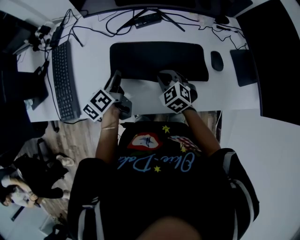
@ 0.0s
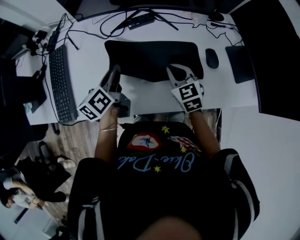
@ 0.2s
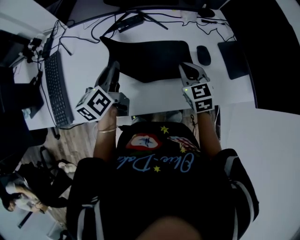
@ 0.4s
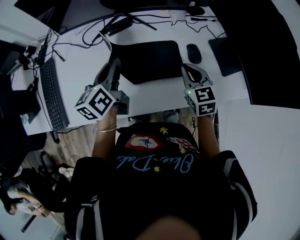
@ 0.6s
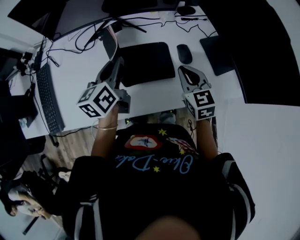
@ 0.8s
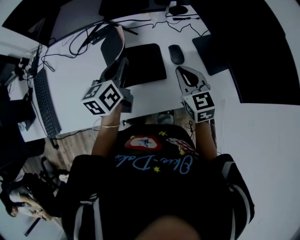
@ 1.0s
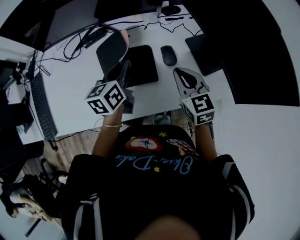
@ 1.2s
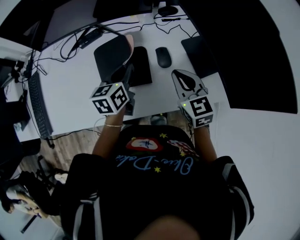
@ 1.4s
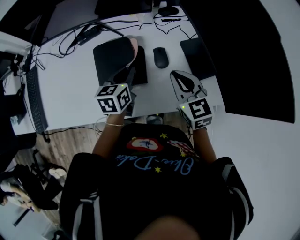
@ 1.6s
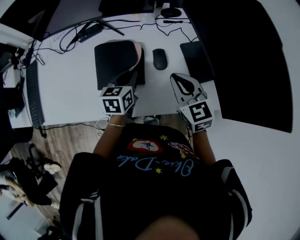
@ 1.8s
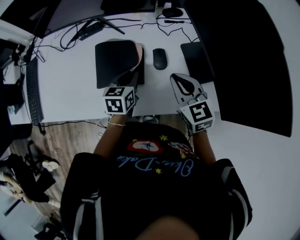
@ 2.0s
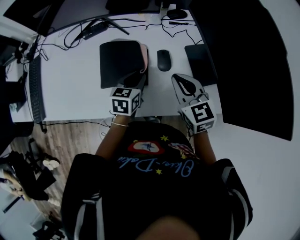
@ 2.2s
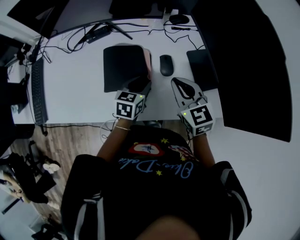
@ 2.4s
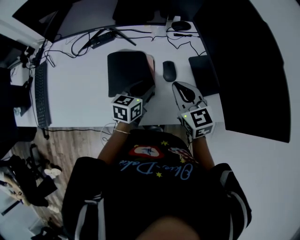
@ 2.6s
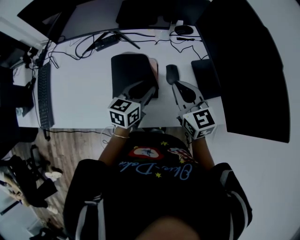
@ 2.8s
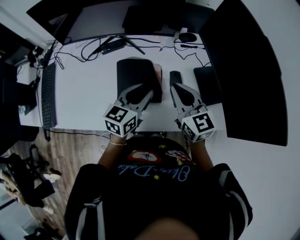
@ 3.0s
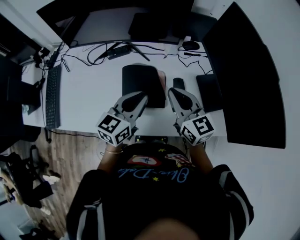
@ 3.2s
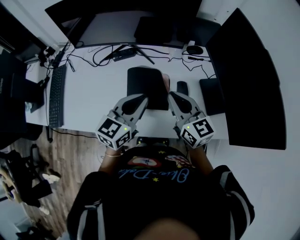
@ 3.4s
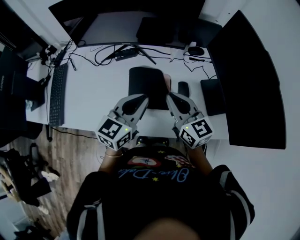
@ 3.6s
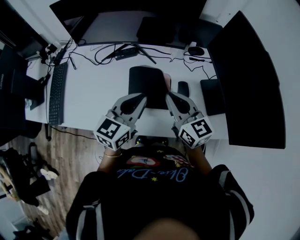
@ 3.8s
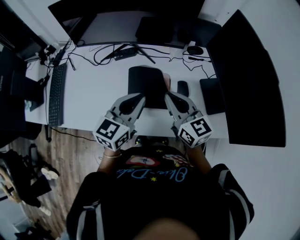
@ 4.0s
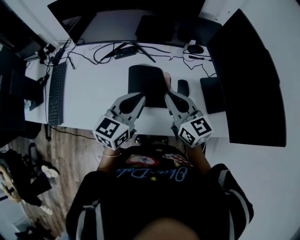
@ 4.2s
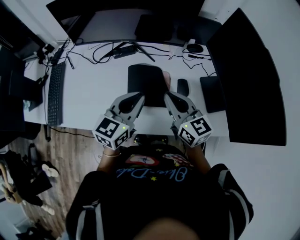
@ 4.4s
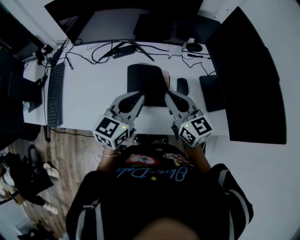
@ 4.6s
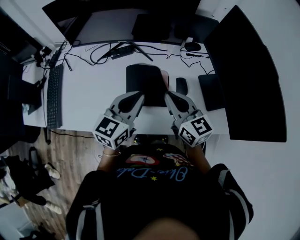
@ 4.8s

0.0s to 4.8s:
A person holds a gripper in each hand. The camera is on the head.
0.0s to 1.6s: The left gripper goes roughly 35 cm to the right, and changes its angle by about 40 degrees, while the right gripper goes approximately 35 cm to the right and upward, and swivels about 30 degrees.
1.6s to 3.2s: The right gripper travels to the left and upward by approximately 10 cm, and changes its angle by some 20 degrees; the left gripper moves upward and backward, approximately 10 cm, changes its angle by about 20 degrees, and opens and closes again.
3.2s to 4.8s: The grippers stay close to where they were, moving slightly.

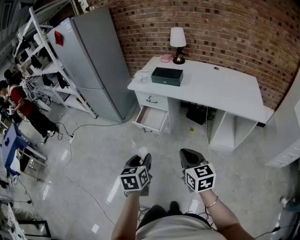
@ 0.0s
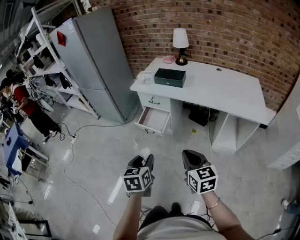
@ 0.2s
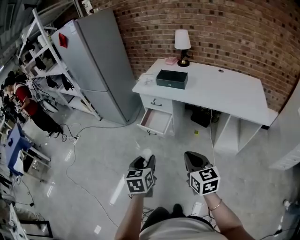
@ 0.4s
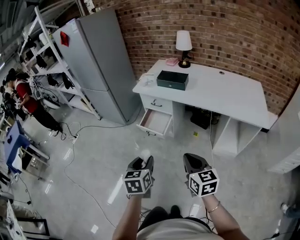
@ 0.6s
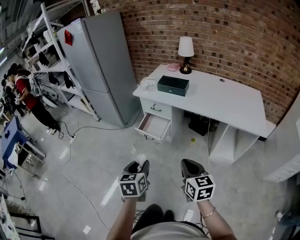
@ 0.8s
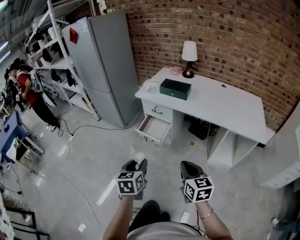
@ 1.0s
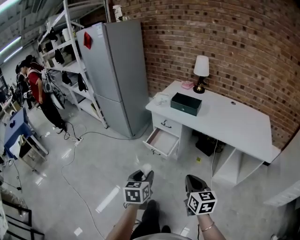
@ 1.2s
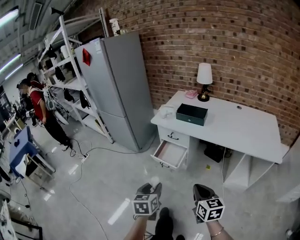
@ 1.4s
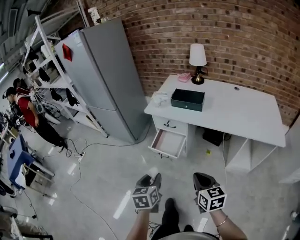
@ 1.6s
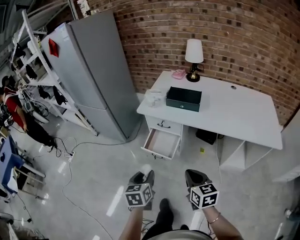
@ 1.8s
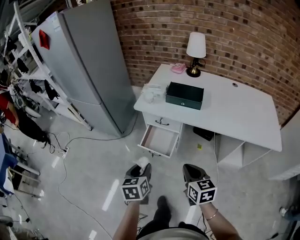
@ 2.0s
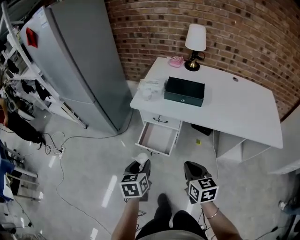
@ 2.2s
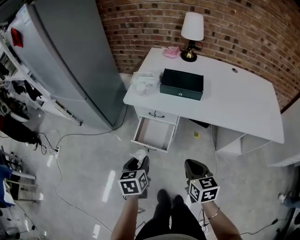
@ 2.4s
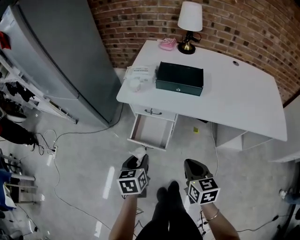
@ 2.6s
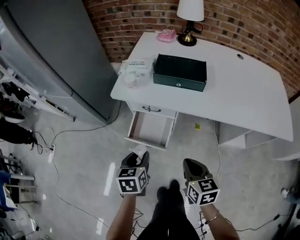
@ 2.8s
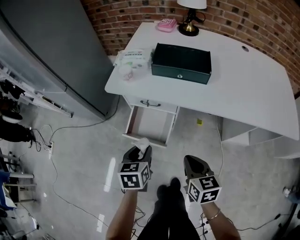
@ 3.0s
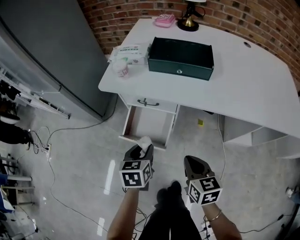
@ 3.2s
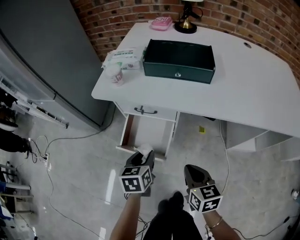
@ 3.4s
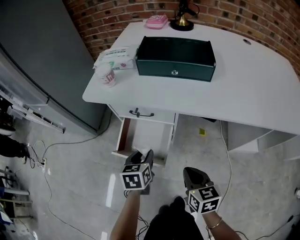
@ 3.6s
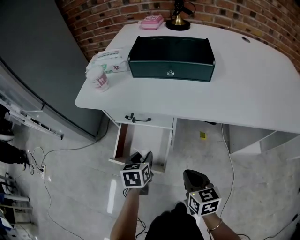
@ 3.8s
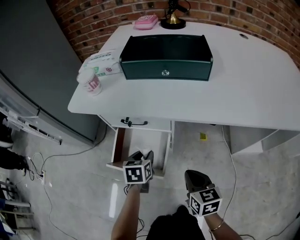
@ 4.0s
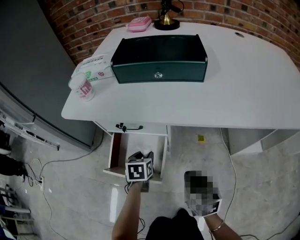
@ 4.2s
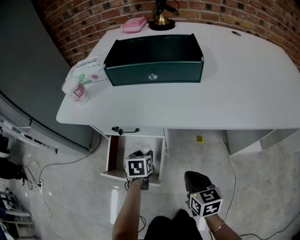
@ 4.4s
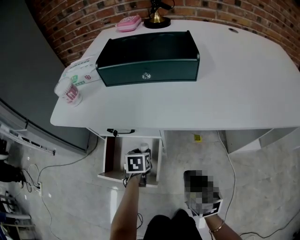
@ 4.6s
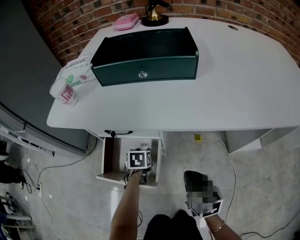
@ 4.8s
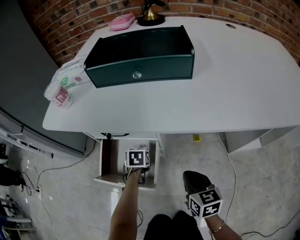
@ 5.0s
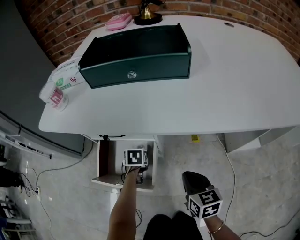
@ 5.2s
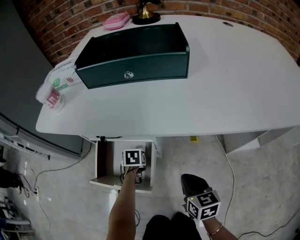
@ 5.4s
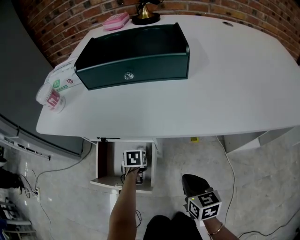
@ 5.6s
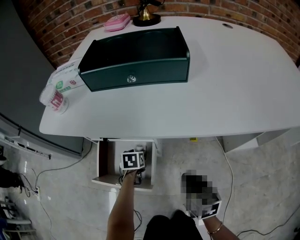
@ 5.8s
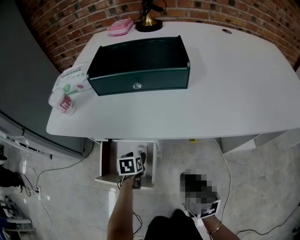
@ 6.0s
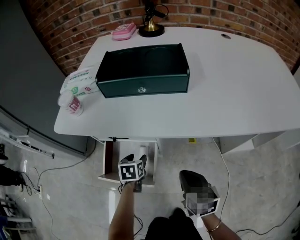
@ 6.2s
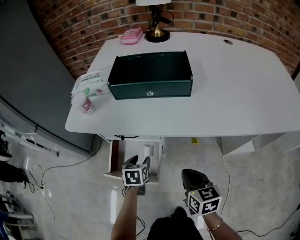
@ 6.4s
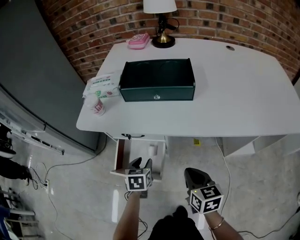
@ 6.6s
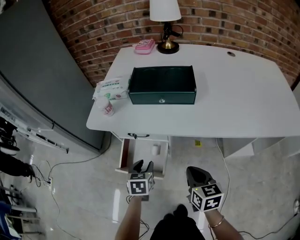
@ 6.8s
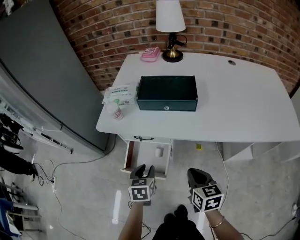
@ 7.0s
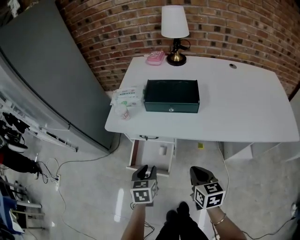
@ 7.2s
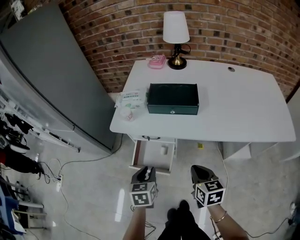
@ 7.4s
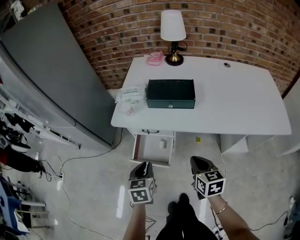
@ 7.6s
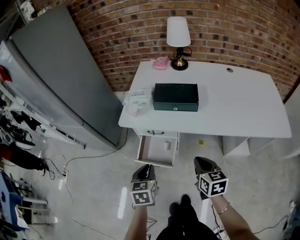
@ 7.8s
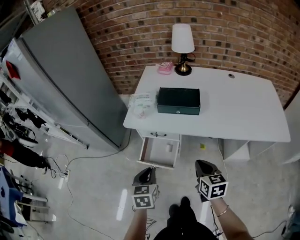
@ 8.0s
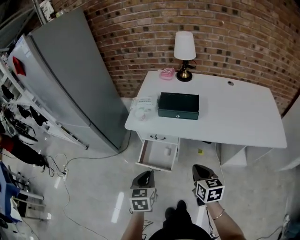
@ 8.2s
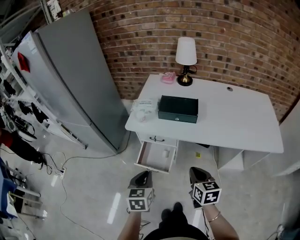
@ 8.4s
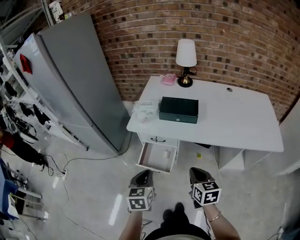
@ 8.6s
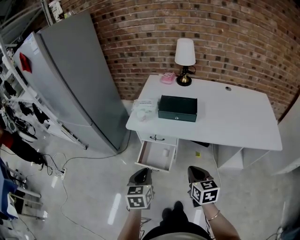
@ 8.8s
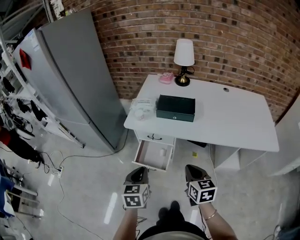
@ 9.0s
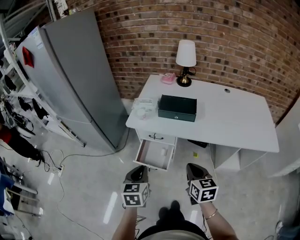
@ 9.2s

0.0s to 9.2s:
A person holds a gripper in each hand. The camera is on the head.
0.0s to 1.6s: The right gripper moves forward, about 15 cm. The left gripper goes some 15 cm forward and to the left.
1.6s to 3.0s: Both grippers travel together forward and downward, roughly 40 cm.
3.0s to 4.6s: The two grippers go roughly 35 cm downward and forward.
4.6s to 6.2s: The right gripper shifts about 5 cm upward; the left gripper reaches roughly 10 cm downward, then returns.
6.2s to 7.6s: The left gripper heads upward and backward, covering approximately 40 cm, and closes. The right gripper moves upward, approximately 30 cm.
7.6s to 9.2s: The two grippers go about 15 cm upward and backward.

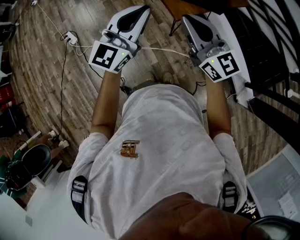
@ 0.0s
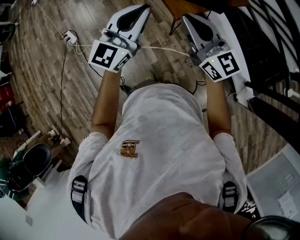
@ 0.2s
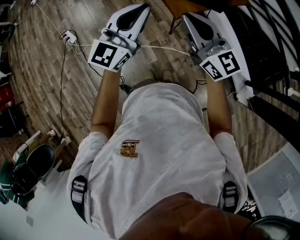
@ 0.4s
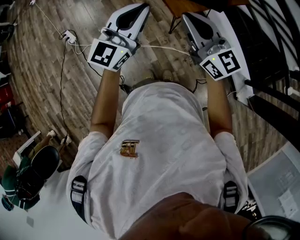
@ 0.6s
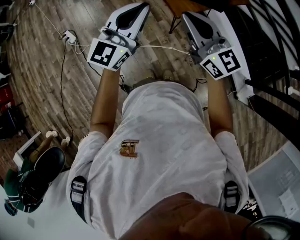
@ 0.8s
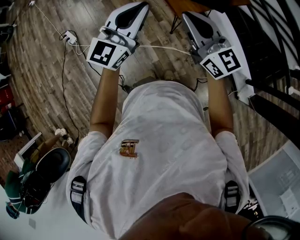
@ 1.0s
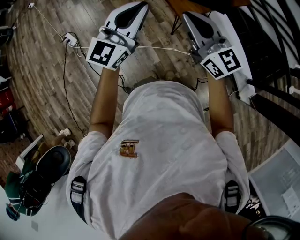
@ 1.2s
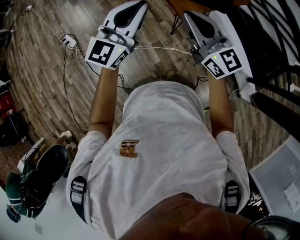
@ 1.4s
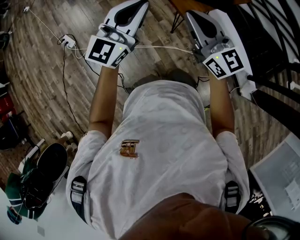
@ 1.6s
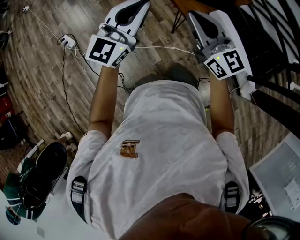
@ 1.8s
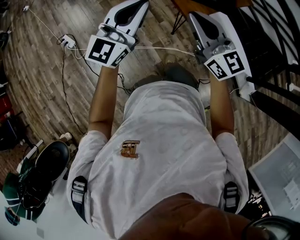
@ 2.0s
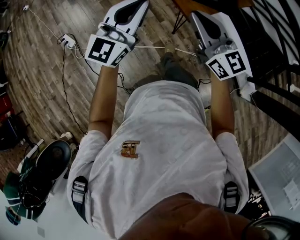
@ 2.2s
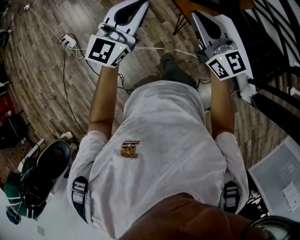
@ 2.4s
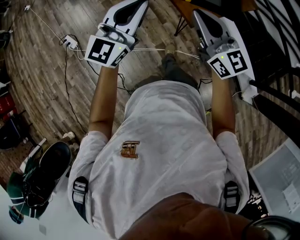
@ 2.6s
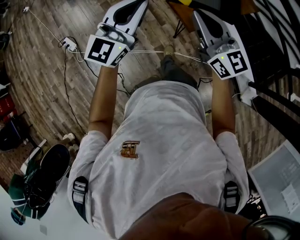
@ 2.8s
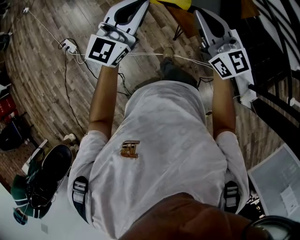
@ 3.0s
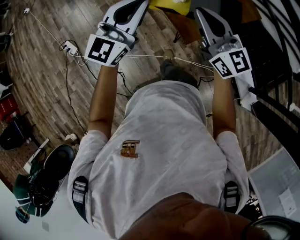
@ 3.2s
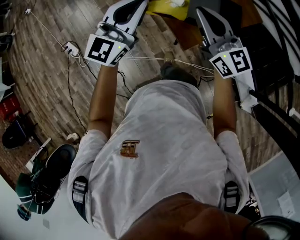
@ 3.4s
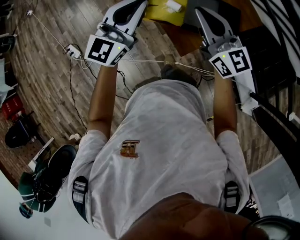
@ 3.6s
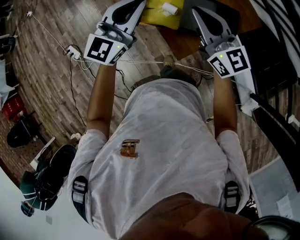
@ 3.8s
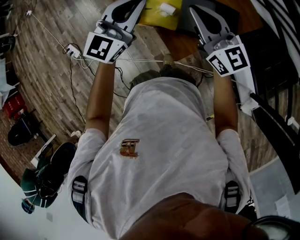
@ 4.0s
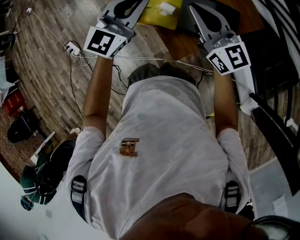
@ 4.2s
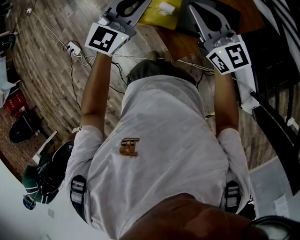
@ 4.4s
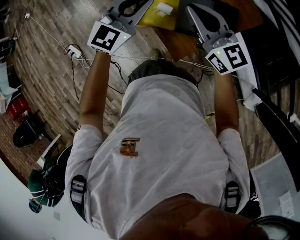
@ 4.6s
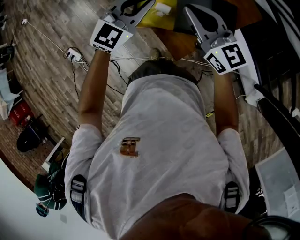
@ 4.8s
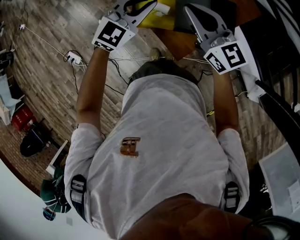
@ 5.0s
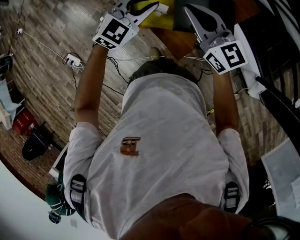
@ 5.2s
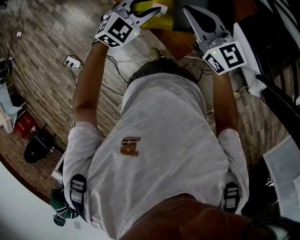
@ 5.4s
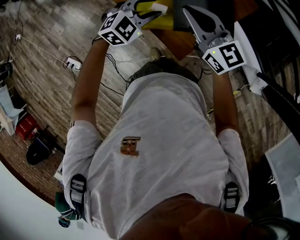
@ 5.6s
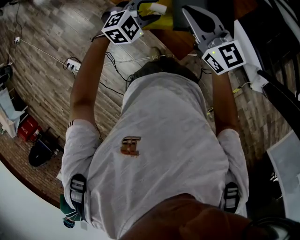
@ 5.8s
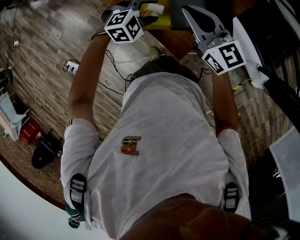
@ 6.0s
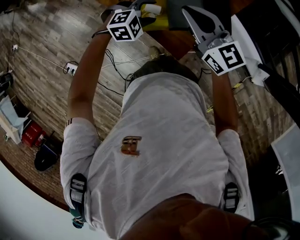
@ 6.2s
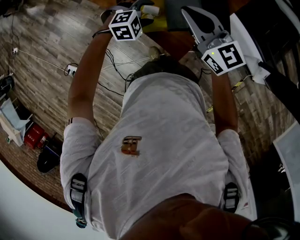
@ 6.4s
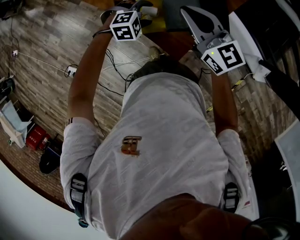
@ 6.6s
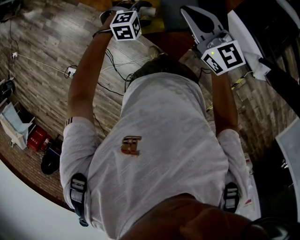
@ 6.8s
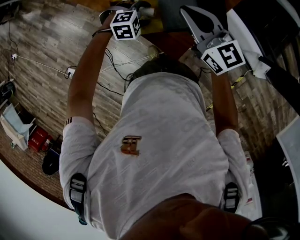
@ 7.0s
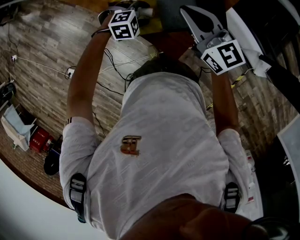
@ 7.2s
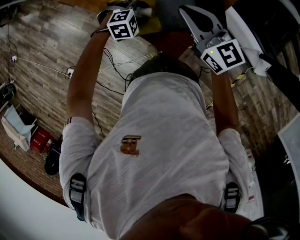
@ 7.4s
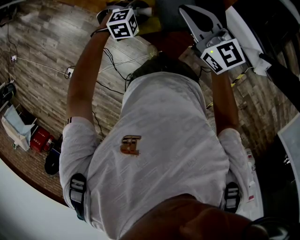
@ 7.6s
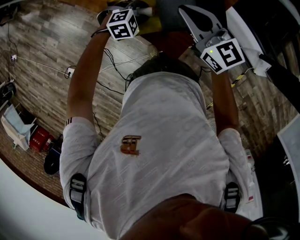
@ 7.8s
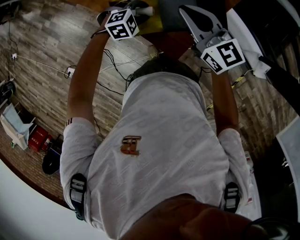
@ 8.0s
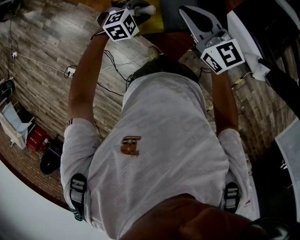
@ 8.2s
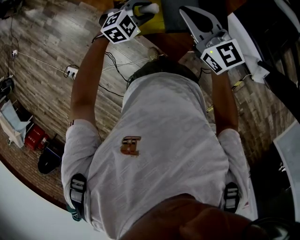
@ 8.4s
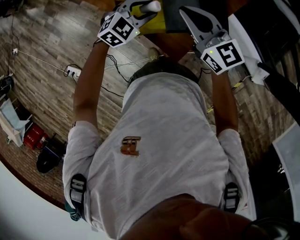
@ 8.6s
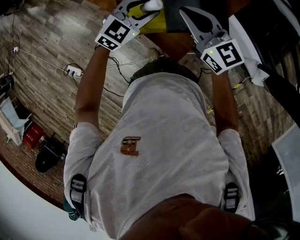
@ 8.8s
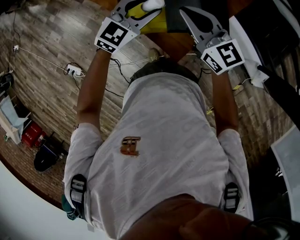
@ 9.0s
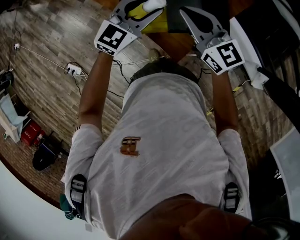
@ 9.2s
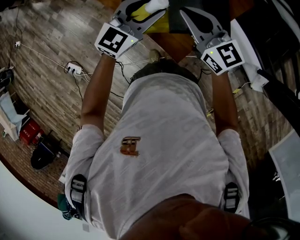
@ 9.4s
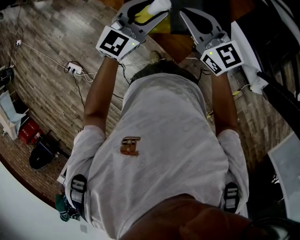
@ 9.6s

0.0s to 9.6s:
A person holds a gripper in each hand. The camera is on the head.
0.0s to 1.6s: Both grippers travel together to the left, about 10 cm.
1.6s to 3.2s: Both grippers move forward, roughly 20 cm.
3.2s to 4.8s: The two grippers go about 20 cm forward and to the right. The left gripper rotates roughly 30 degrees.
4.8s to 6.4s: The left gripper shifts approximately 20 cm downward, tips its fingers downward by about 50 degrees, and opens.
6.4s to 8.0s: The grippers stay close to where they were, moving slightly.
8.0s to 9.6s: The left gripper heads upward, covering approximately 25 cm, and tips its fingers upward by approximately 50 degrees.
